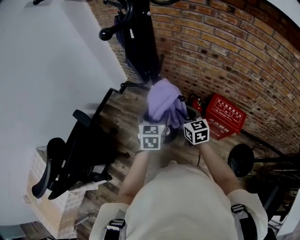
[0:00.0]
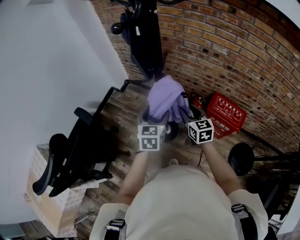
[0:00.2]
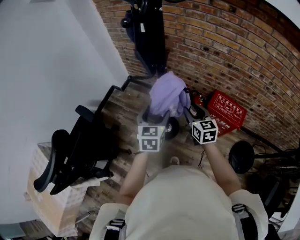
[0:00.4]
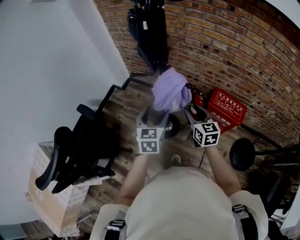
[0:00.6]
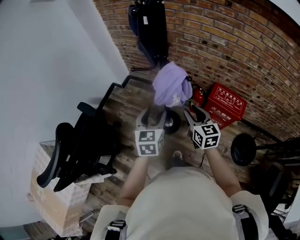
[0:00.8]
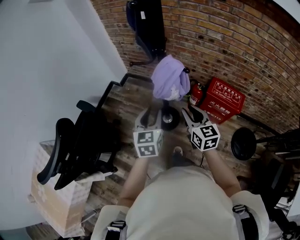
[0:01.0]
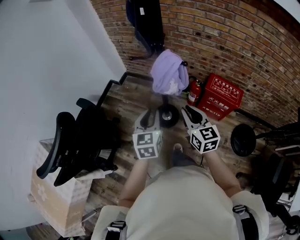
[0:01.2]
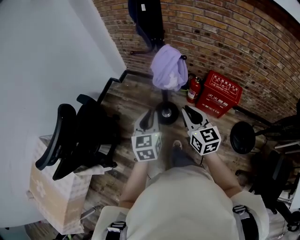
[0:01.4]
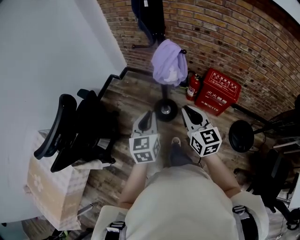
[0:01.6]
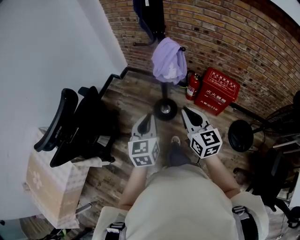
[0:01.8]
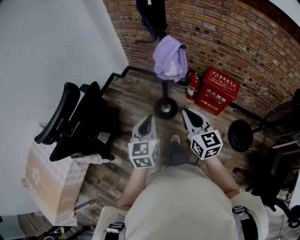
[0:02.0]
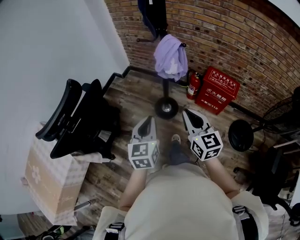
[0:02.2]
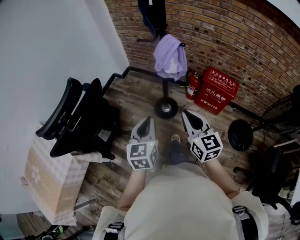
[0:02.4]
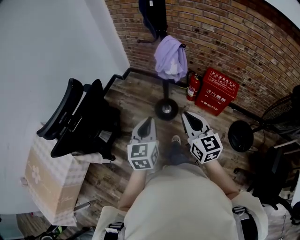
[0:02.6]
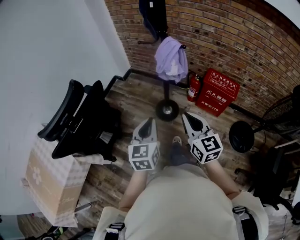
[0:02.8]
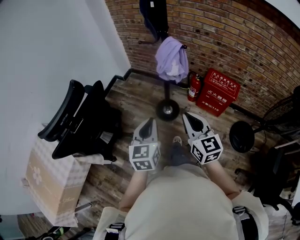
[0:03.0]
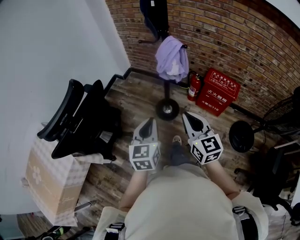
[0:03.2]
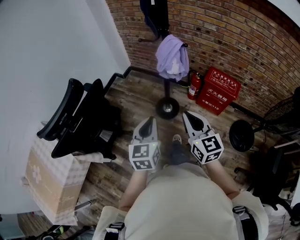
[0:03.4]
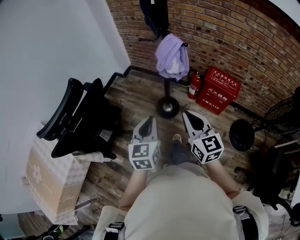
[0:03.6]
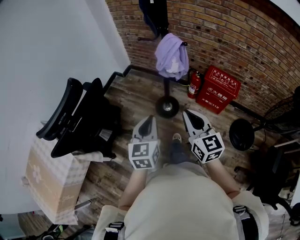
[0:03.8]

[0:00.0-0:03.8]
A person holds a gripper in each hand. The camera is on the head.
0:00.0 to 0:01.2: The right gripper moves backward, approximately 20 cm. Meanwhile the left gripper is displaced backward and to the left by about 20 cm, and closes.
0:01.2 to 0:02.6: The grippers both shift backward by some 20 cm.
0:02.6 to 0:03.8: Both grippers stay put.

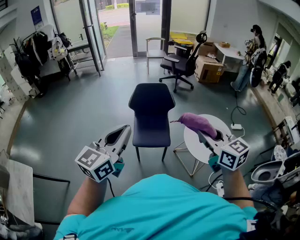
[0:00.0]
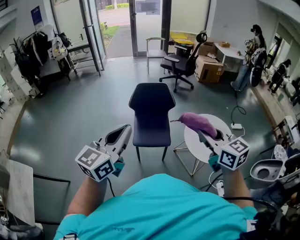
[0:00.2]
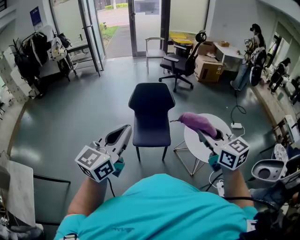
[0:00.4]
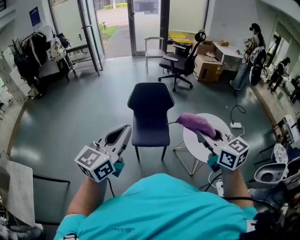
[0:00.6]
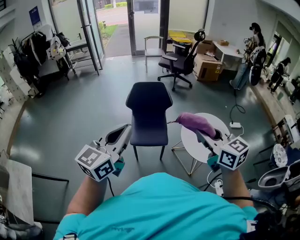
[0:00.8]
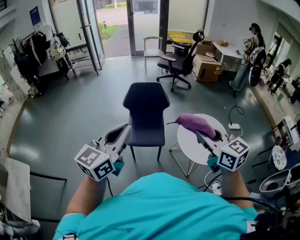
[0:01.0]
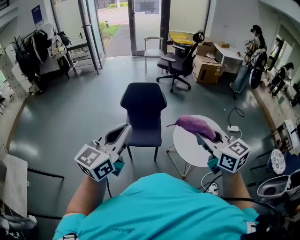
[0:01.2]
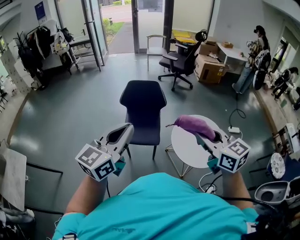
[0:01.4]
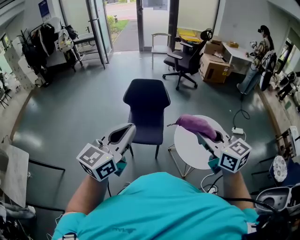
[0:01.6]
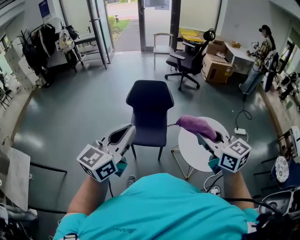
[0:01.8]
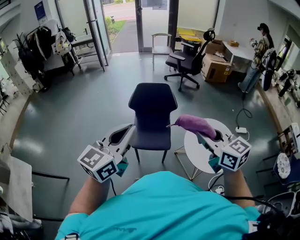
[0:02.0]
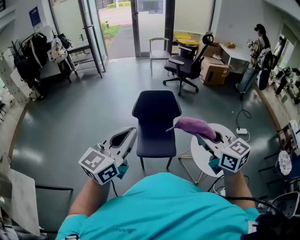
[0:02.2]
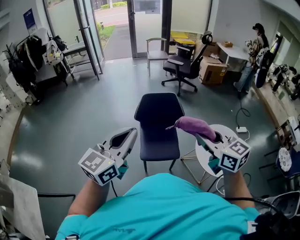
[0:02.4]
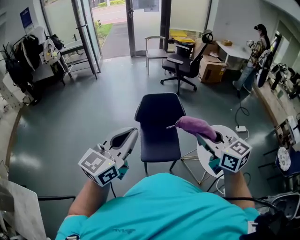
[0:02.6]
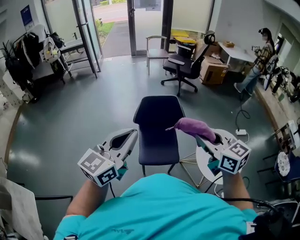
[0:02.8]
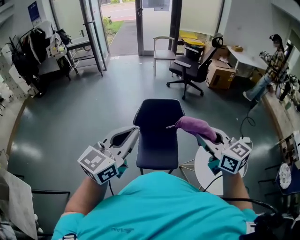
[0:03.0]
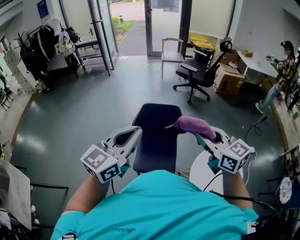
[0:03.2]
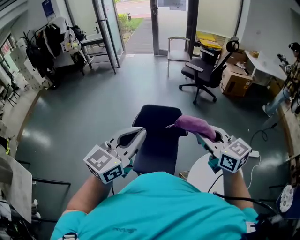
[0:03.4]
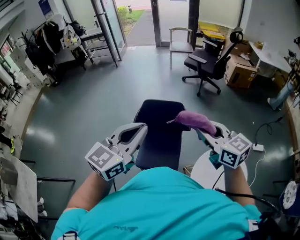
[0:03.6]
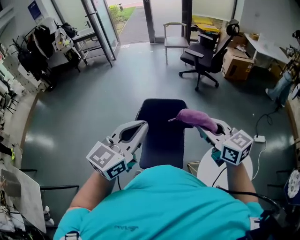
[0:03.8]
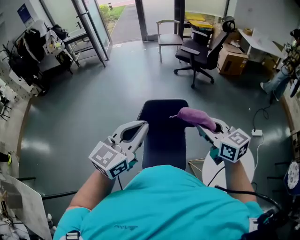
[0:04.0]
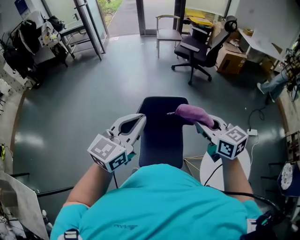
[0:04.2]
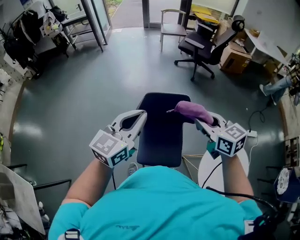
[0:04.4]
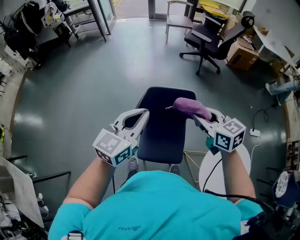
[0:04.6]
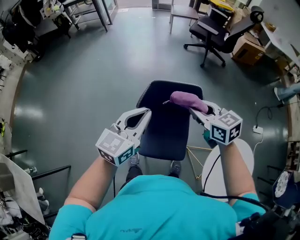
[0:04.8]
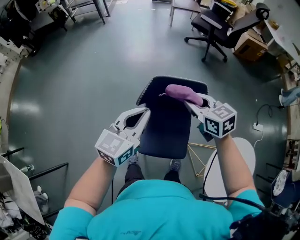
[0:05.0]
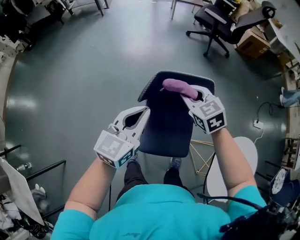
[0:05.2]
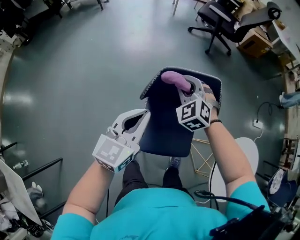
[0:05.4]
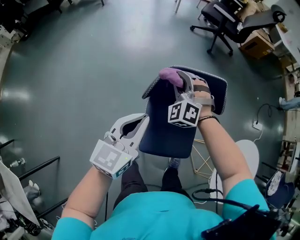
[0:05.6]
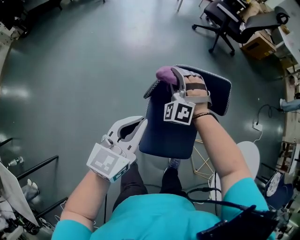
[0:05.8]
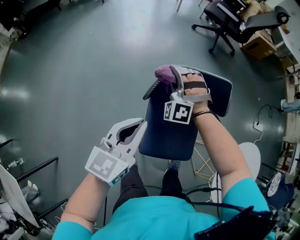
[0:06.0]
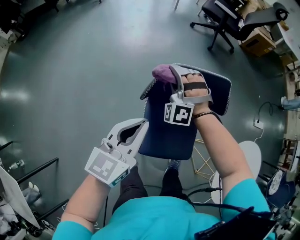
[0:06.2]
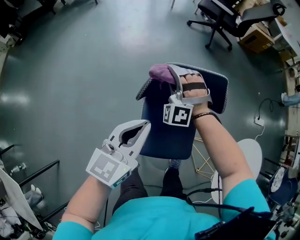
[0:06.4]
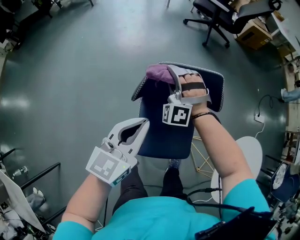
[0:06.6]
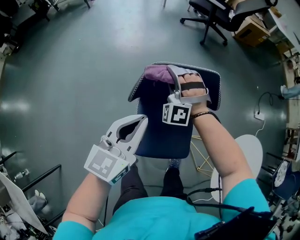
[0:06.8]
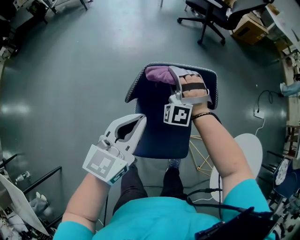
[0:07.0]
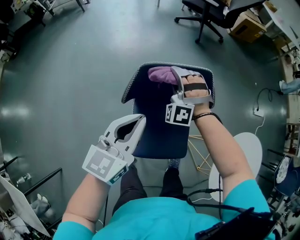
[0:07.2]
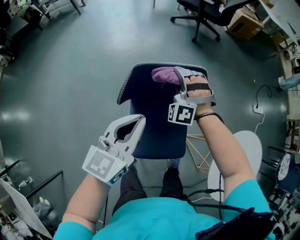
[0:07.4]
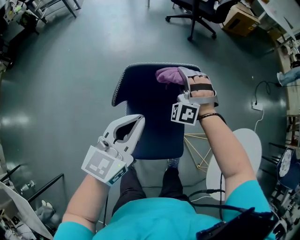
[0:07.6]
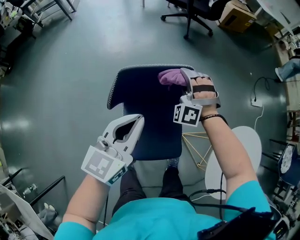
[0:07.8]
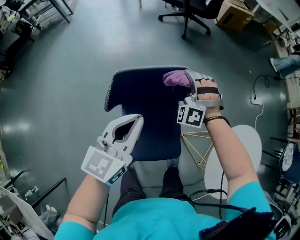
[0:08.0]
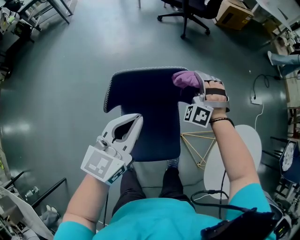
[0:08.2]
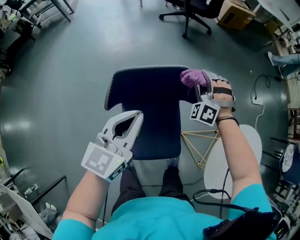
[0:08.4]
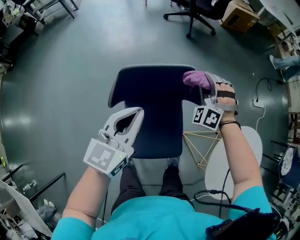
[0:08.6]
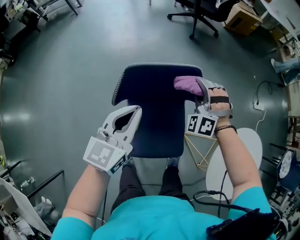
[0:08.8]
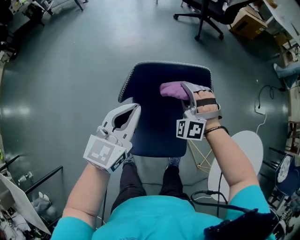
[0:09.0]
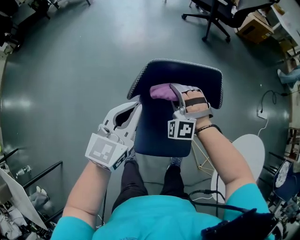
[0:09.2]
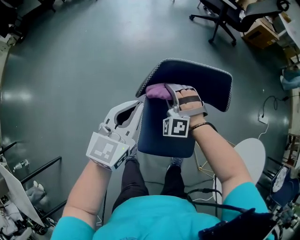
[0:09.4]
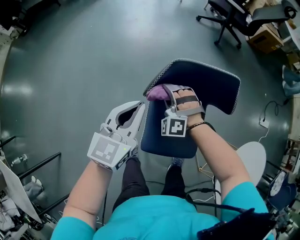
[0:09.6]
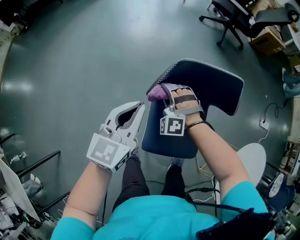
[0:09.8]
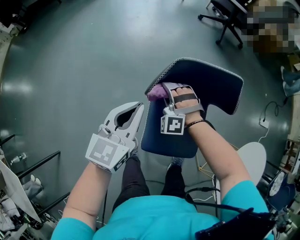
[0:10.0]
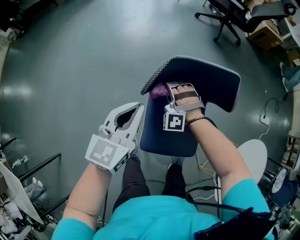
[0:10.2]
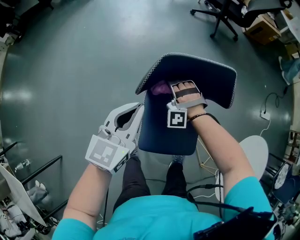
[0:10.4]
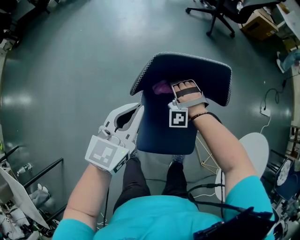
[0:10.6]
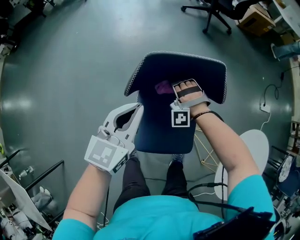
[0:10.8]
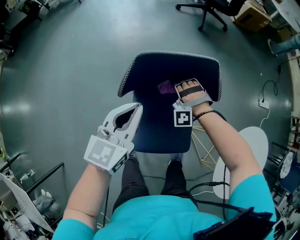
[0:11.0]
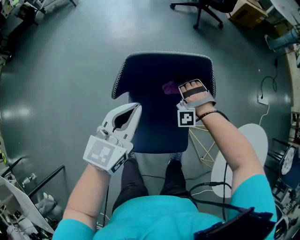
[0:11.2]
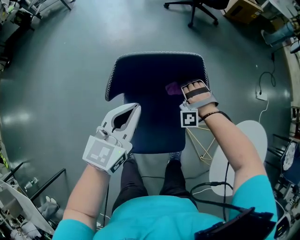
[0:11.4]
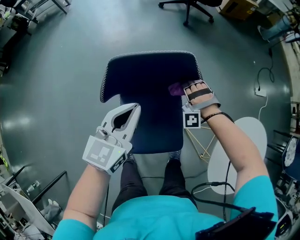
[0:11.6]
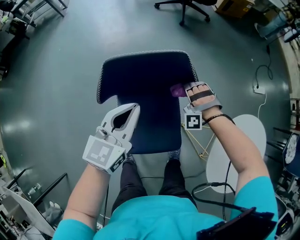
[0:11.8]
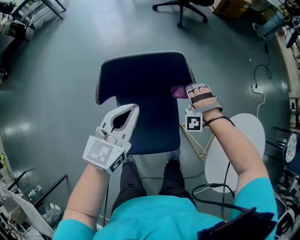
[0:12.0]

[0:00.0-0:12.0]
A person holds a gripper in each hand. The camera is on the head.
0:00.0 to 0:01.6: Both grippers move to the right, approximately 10 cm.
0:01.6 to 0:03.0: Both grippers move forward and to the left, approximately 30 cm.
0:03.0 to 0:04.4: The grippers both shift forward and downward by approximately 25 cm.
0:04.4 to 0:06.0: The left gripper travels downward and to the left by roughly 30 cm. The right gripper travels downward, to the left and forward by roughly 50 cm, and twists about 90 degrees counterclockwise, seen from behind.
0:06.0 to 0:07.6: The left gripper travels to the right and forward by approximately 15 cm. The right gripper heads to the right, covering roughly 20 cm.
0:07.6 to 0:09.0: The right gripper travels backward by about 5 cm, and moves roughly 15 cm to the right and comes back.
0:09.0 to 0:10.4: The right gripper goes roughly 20 cm to the left and downward; the left gripper is displaced to the left by about 10 cm.
0:10.4 to 0:12.0: The left gripper heads to the right, covering roughly 20 cm. The right gripper is displaced to the right by some 30 cm, and turns by approximately 20 degrees.

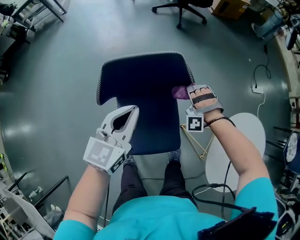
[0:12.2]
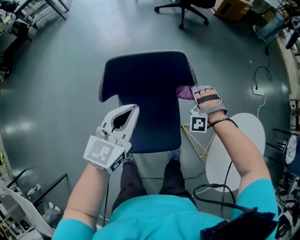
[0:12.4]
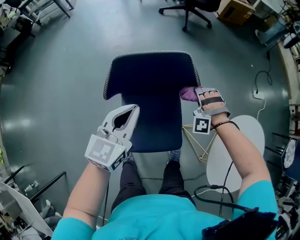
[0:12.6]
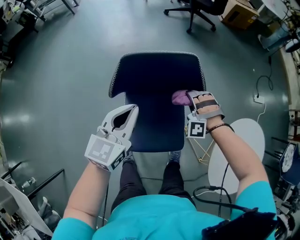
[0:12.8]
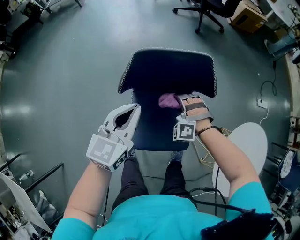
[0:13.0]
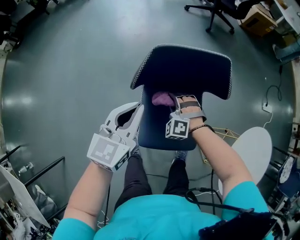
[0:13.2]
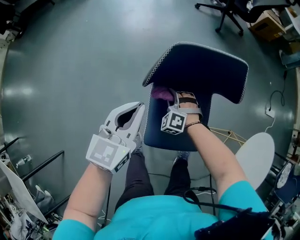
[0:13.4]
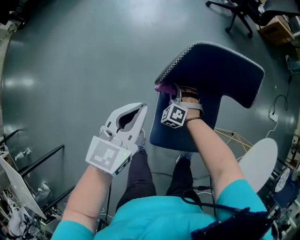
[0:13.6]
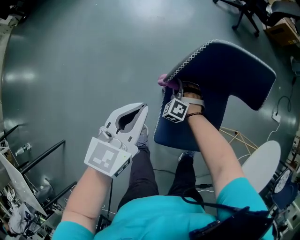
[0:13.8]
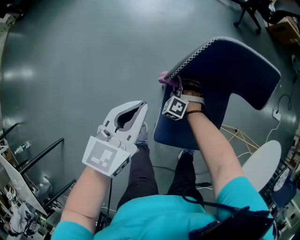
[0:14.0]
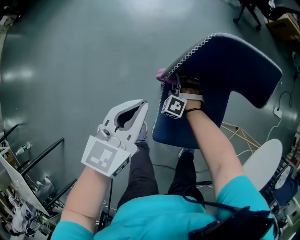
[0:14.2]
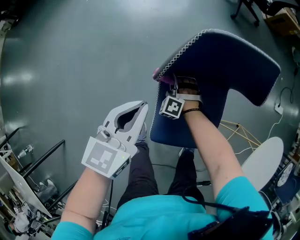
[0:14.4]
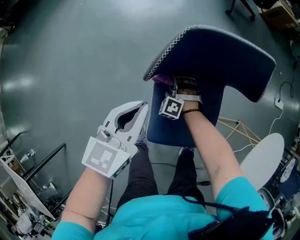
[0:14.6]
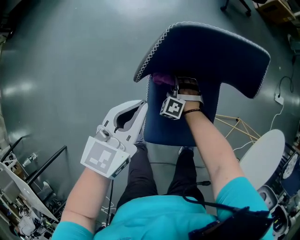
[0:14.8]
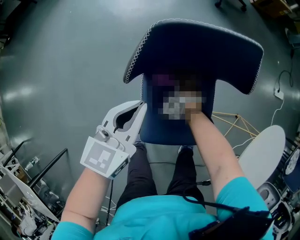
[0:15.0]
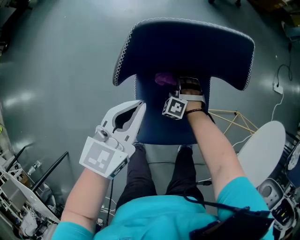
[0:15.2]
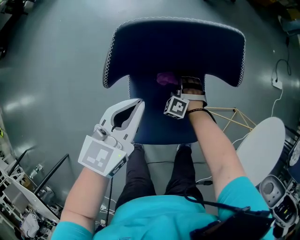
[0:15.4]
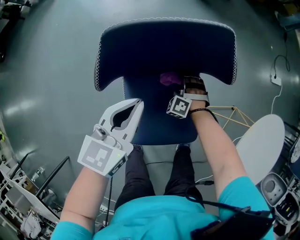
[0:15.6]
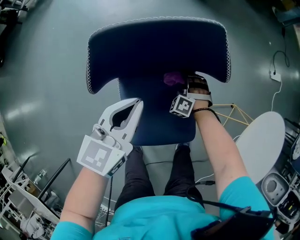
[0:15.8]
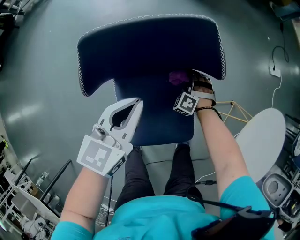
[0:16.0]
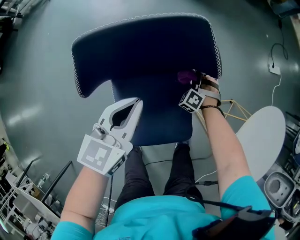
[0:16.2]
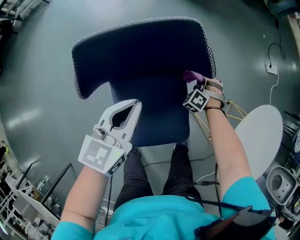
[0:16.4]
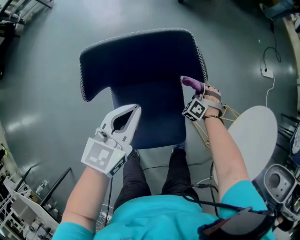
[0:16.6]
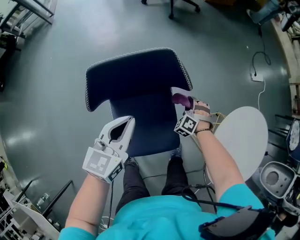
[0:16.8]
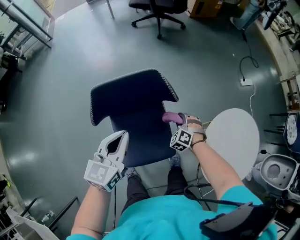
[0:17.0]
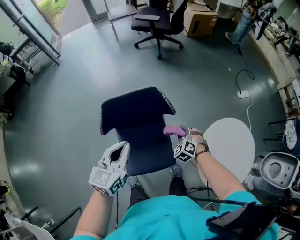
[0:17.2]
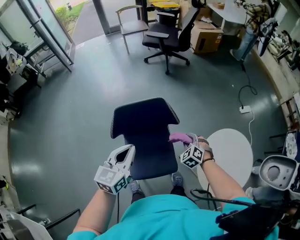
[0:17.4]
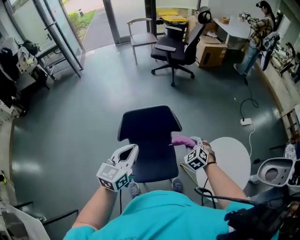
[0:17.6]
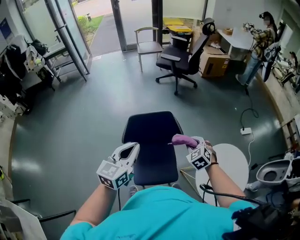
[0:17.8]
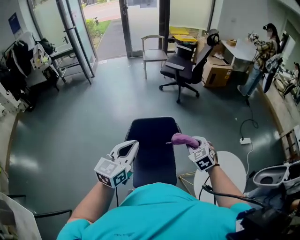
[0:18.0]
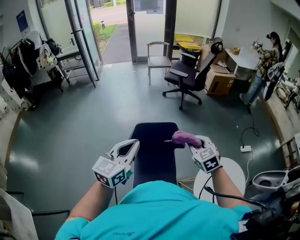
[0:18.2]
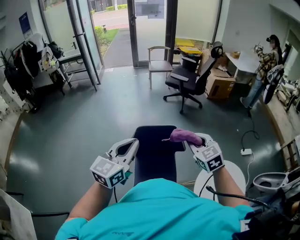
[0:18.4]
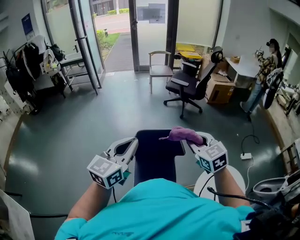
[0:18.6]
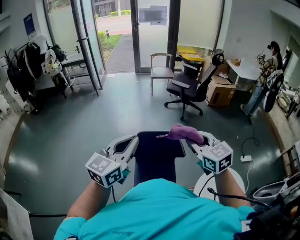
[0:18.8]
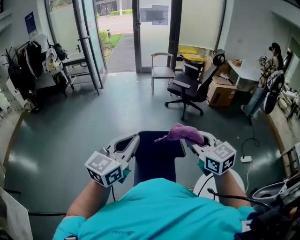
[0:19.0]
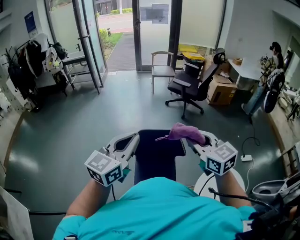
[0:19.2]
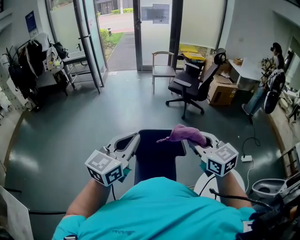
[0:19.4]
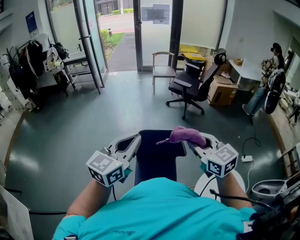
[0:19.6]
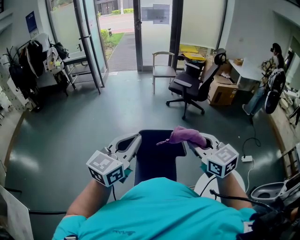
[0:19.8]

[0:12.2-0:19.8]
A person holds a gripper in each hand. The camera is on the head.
0:12.2 to 0:13.8: The right gripper heads to the left and downward, covering about 40 cm, and rotates about 30 degrees. The left gripper travels to the left and backward by roughly 25 cm.
0:13.8 to 0:15.2: The left gripper shifts some 15 cm to the right and forward. Meanwhile the right gripper shifts roughly 15 cm to the right.
0:15.2 to 0:16.8: The left gripper is displaced to the right, forward and upward by about 15 cm; the right gripper moves to the right, some 25 cm, and rotates roughly 20 degrees.
0:16.8 to 0:18.2: The grippers both shift upward by approximately 40 cm. The right gripper swivels approximately 50 degrees; the left gripper changes its angle by roughly 20 degrees.
0:18.2 to 0:19.8: The left gripper moves upward, about 10 cm; the right gripper shifts some 15 cm upward, and swivels about 30 degrees.
